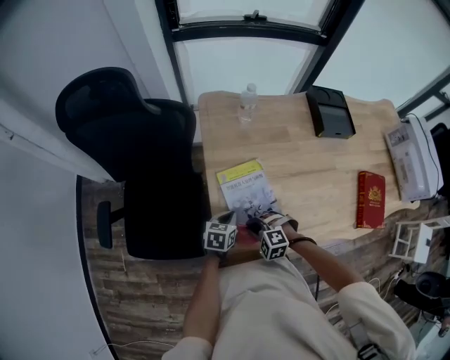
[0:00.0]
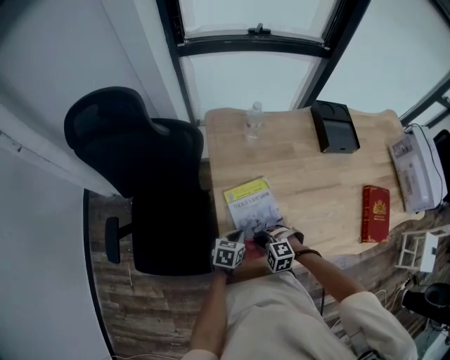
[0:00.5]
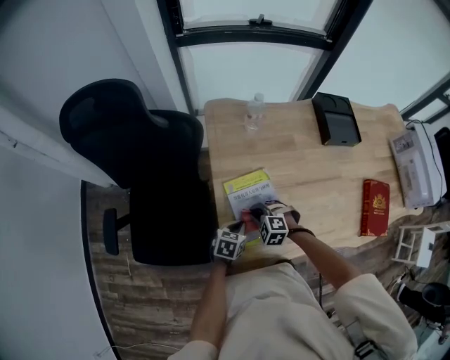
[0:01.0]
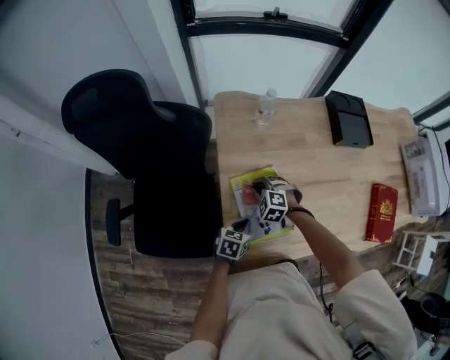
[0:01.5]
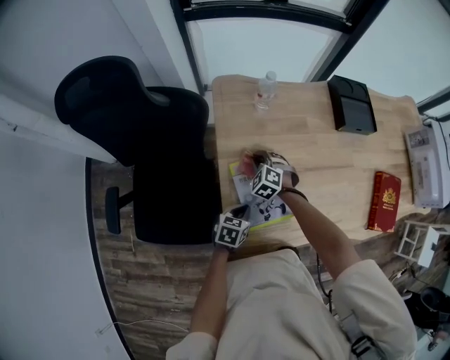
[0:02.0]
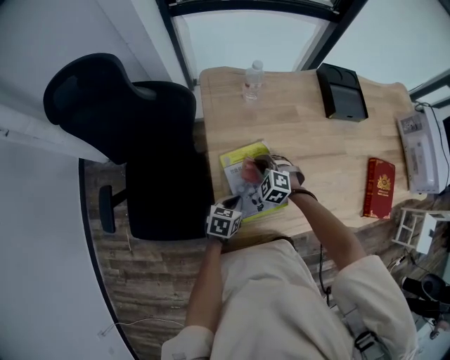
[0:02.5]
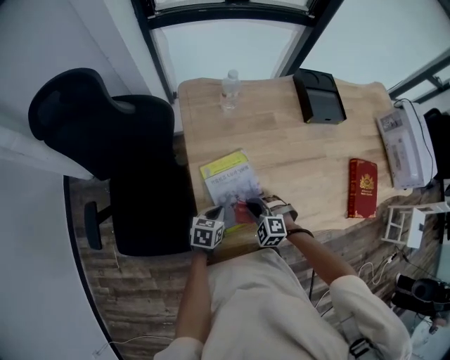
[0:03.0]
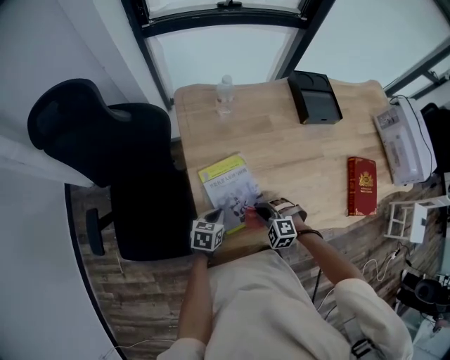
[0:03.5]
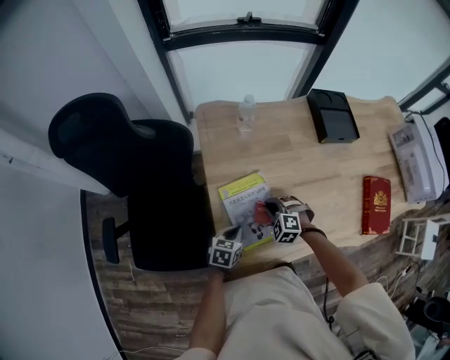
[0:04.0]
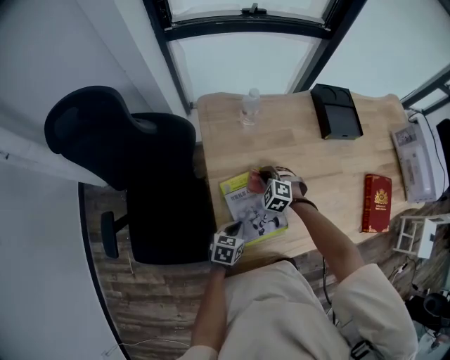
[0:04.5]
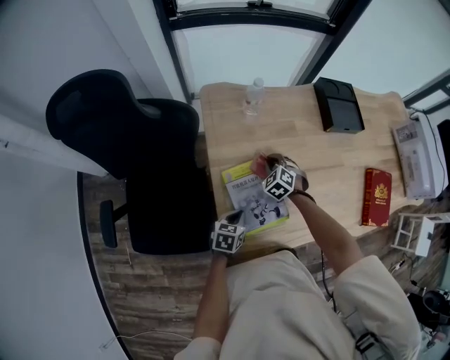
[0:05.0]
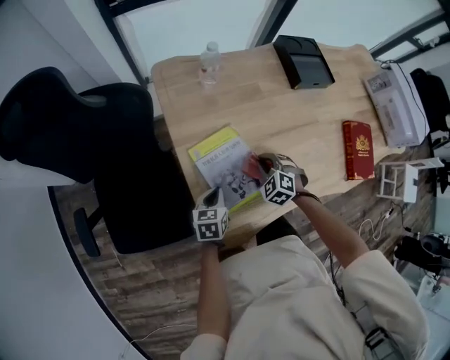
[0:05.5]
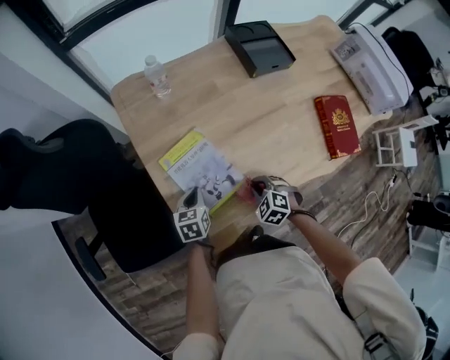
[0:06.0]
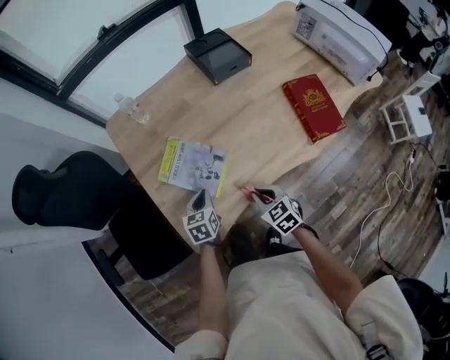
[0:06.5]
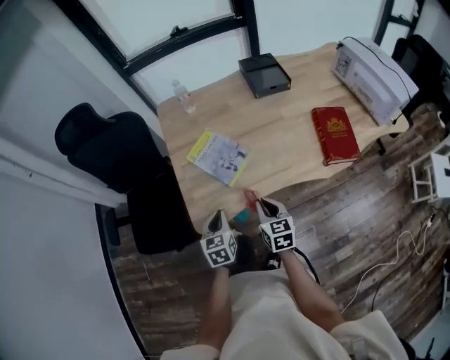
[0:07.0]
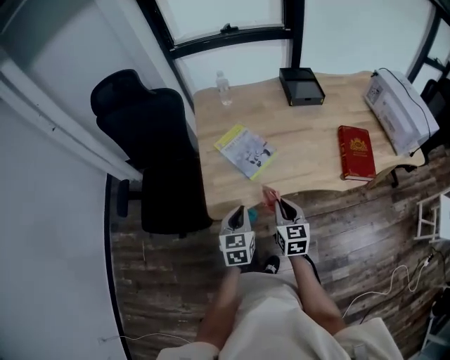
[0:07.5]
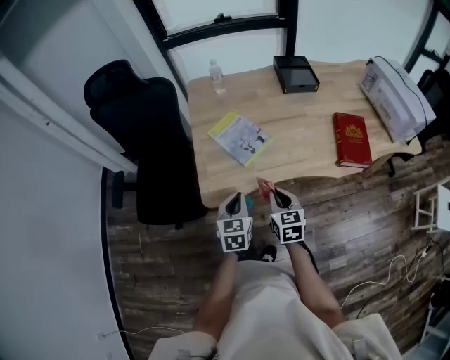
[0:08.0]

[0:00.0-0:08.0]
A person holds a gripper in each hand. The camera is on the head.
0:00.0 to 0:02.0: The right gripper moves forward, approximately 25 cm, and changes its angle by about 30 degrees.
0:02.0 to 0:04.0: The right gripper travels backward and to the right by some 15 cm.
0:04.0 to 0:06.0: The right gripper heads to the right and backward, covering roughly 15 cm, and changes its angle by about 30 degrees.
0:06.0 to 0:08.0: The left gripper heads backward, upward and to the right, covering some 35 cm, and rotates about 30 degrees. The right gripper travels backward and upward by some 25 cm, and tips its fingers upward by approximately 30 degrees.

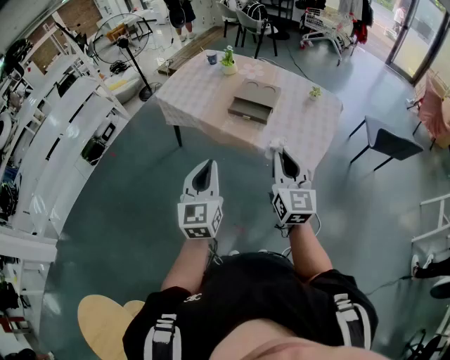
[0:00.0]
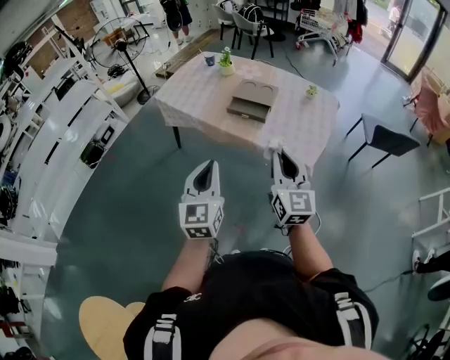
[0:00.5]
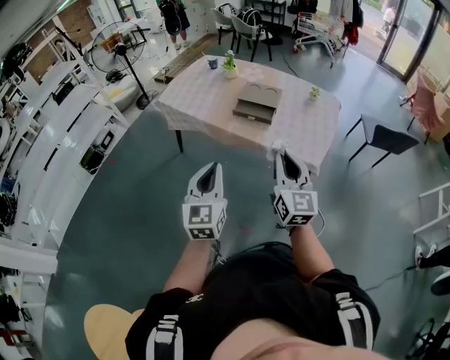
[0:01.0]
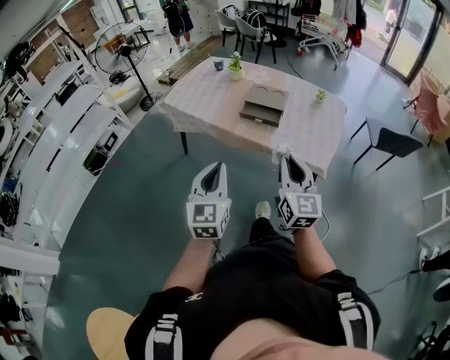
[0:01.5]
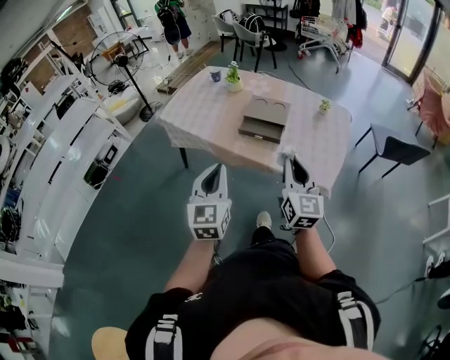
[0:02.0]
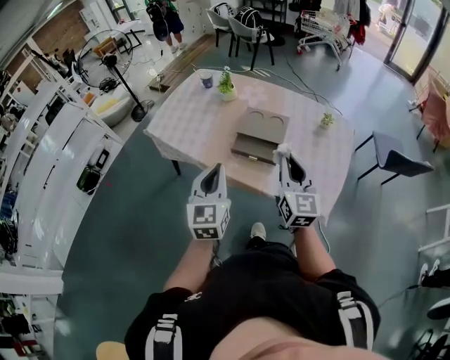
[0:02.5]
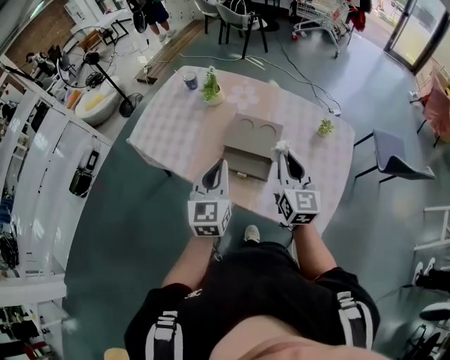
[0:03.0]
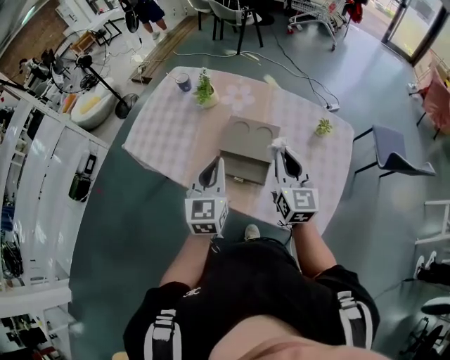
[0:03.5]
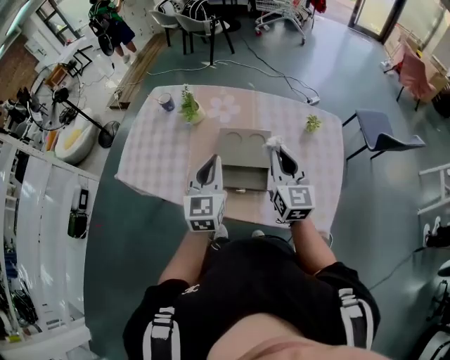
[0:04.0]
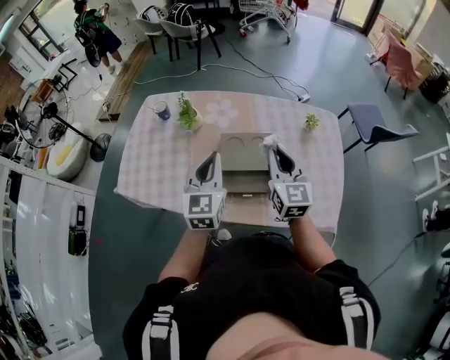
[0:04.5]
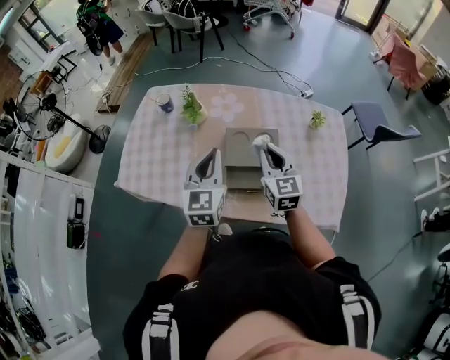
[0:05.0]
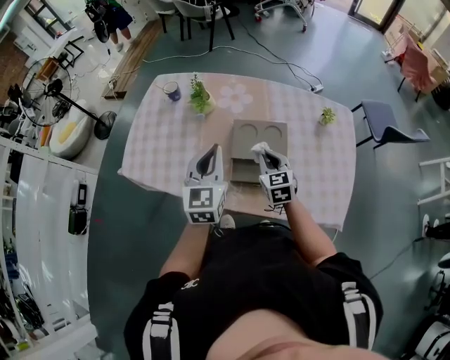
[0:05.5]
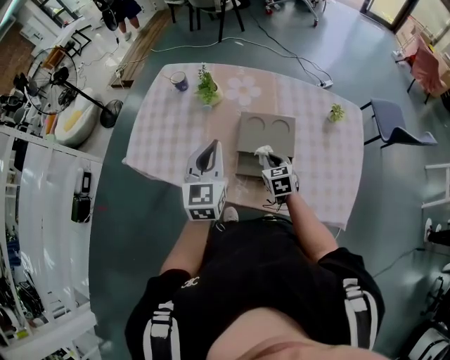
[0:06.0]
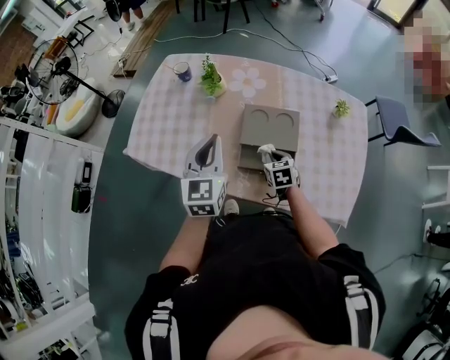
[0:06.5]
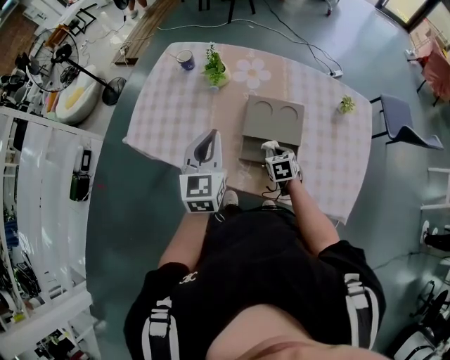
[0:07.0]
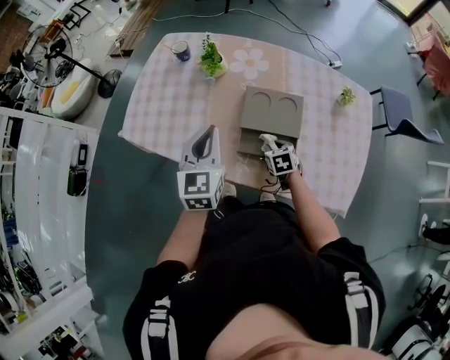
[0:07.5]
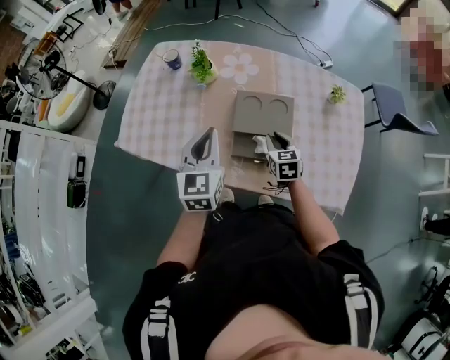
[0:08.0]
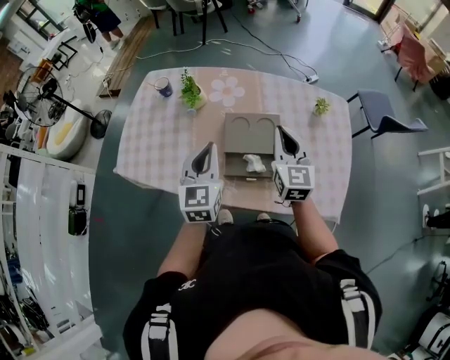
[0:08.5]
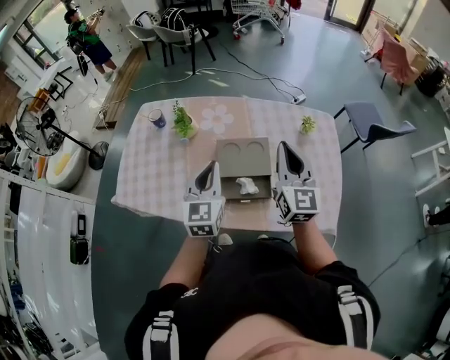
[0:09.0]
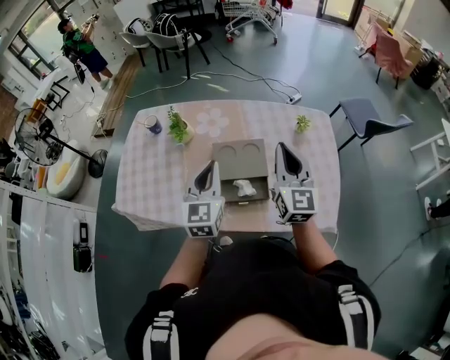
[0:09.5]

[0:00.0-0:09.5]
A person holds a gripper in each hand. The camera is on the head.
0:00.0 to 0:02.0: The left gripper is displaced forward and to the left by roughly 10 cm. The right gripper moves forward, roughly 10 cm.
0:02.0 to 0:04.0: The two grippers travel together, forward, about 40 cm.
0:04.0 to 0:05.5: The left gripper travels to the left by roughly 10 cm. The right gripper travels downward and to the left by roughly 20 cm, and turns by about 30 degrees.
0:05.5 to 0:07.5: The left gripper shifts by about 5 cm. The right gripper goes some 15 cm downward, and changes its angle by roughly 30 degrees.
0:07.5 to 0:09.5: The right gripper moves upward, some 35 cm, angles its fingers upward, by some 60 degrees, and closes up. Meanwhile the left gripper travels to the right by some 10 cm.

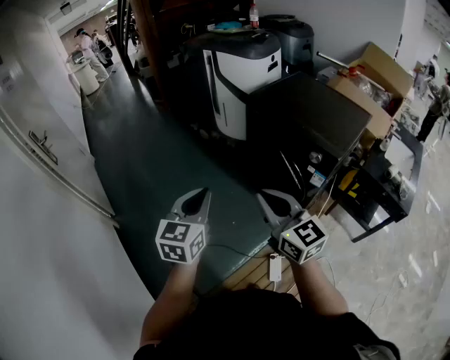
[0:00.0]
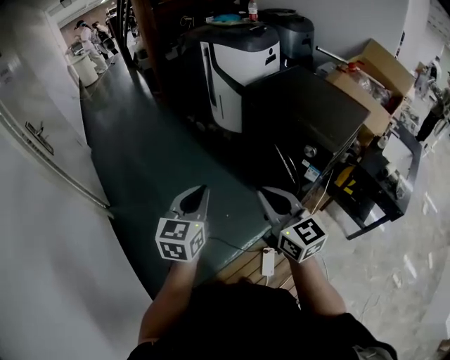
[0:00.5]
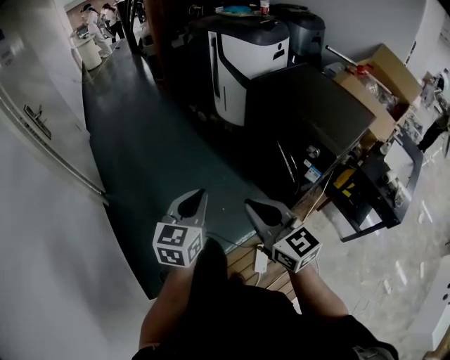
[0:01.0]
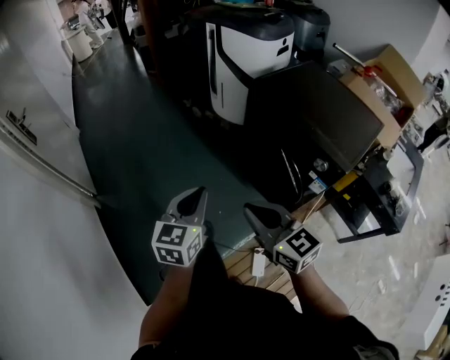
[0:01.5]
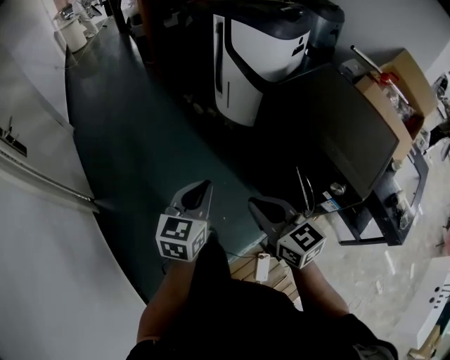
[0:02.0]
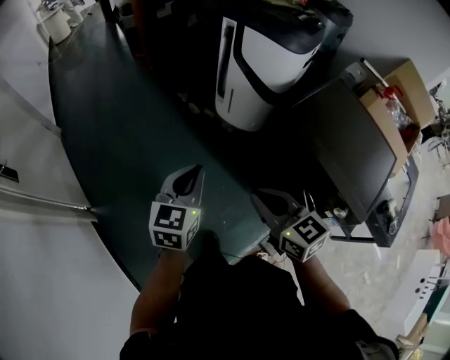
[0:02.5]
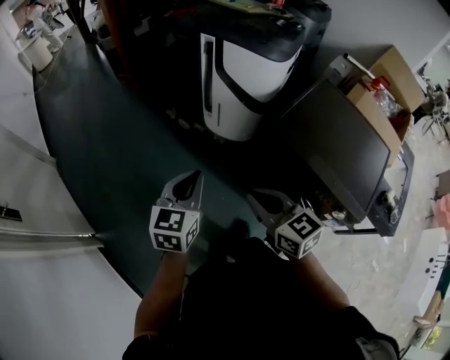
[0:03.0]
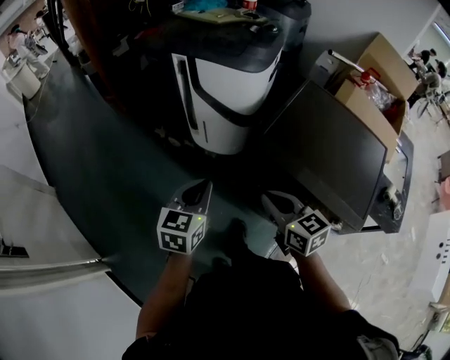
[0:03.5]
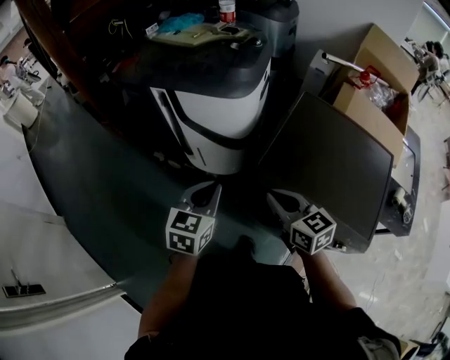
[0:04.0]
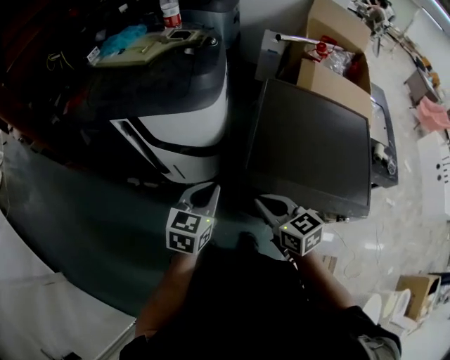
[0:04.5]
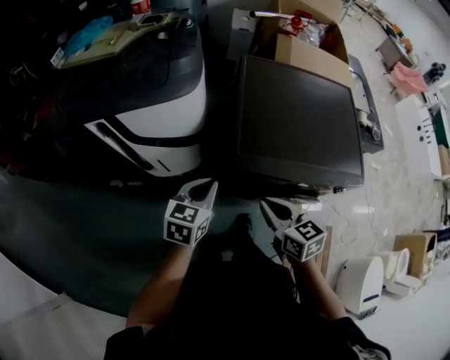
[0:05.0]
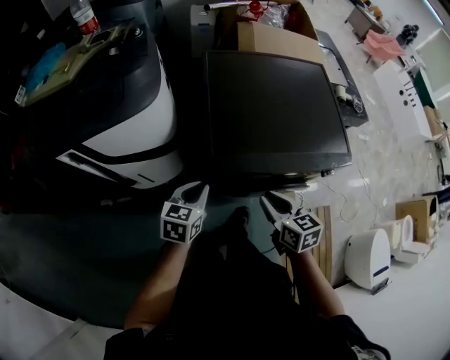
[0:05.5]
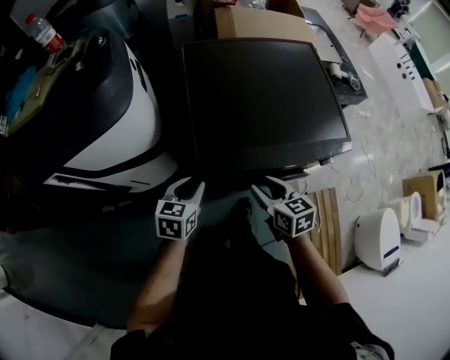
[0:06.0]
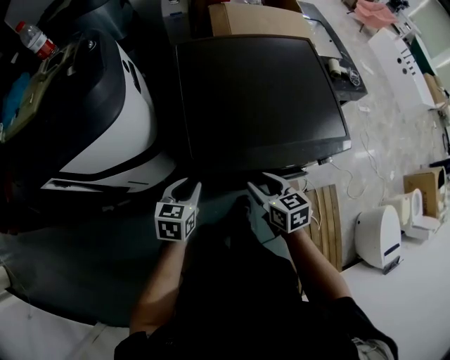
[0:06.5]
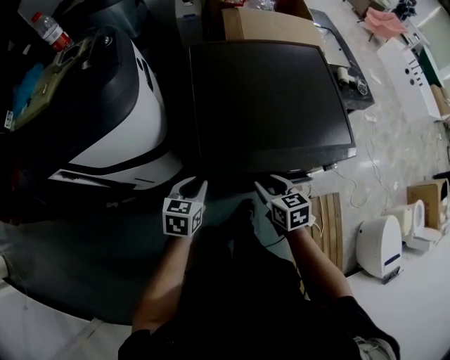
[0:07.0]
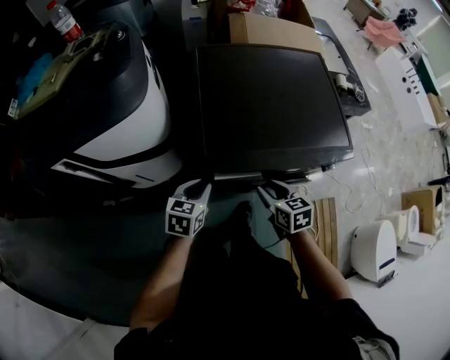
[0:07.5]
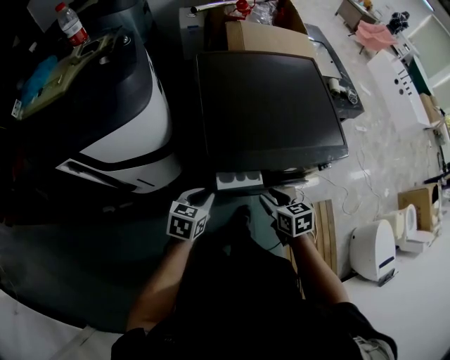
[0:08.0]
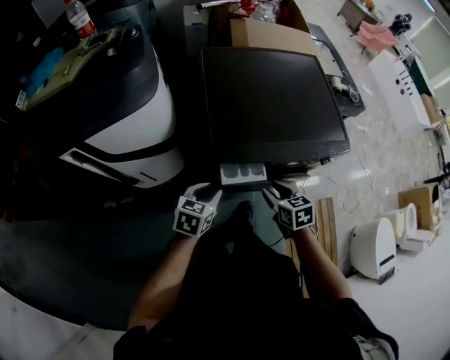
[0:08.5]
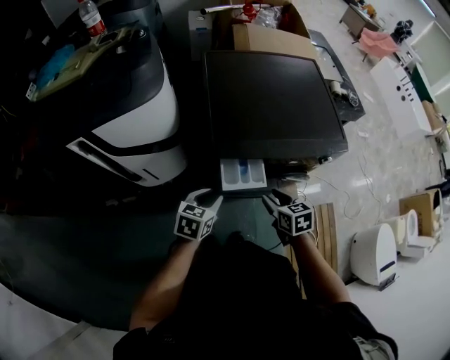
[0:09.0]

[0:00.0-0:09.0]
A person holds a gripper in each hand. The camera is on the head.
0:00.0 to 0:02.0: The grippers both shift forward by about 25 cm.
0:02.0 to 0:04.5: The two grippers travel together, approximately 50 cm. The right gripper changes its angle by some 40 degrees. Meanwhile the left gripper changes its angle by approximately 40 degrees.
0:04.5 to 0:07.0: Both grippers move downward, roughly 15 cm. The right gripper turns by approximately 40 degrees, and opens. The left gripper swivels about 20 degrees.
0:07.0 to 0:09.0: The two grippers go about 10 cm backward.
